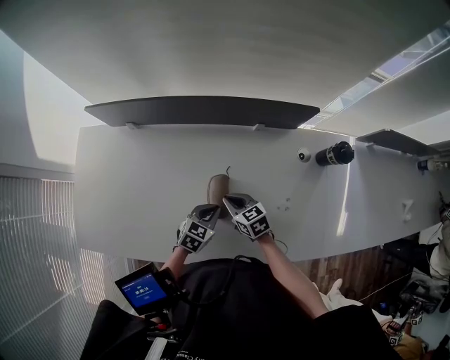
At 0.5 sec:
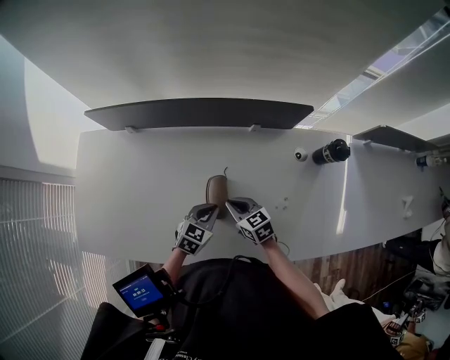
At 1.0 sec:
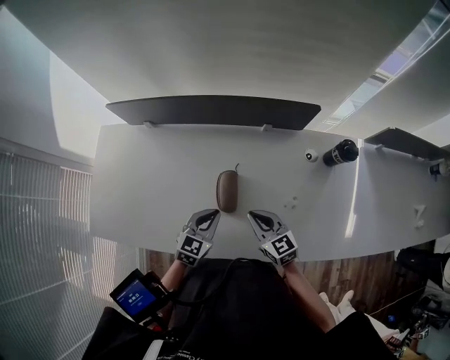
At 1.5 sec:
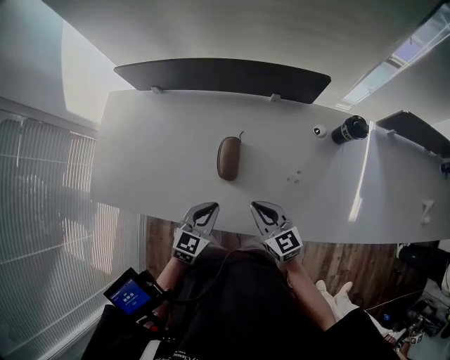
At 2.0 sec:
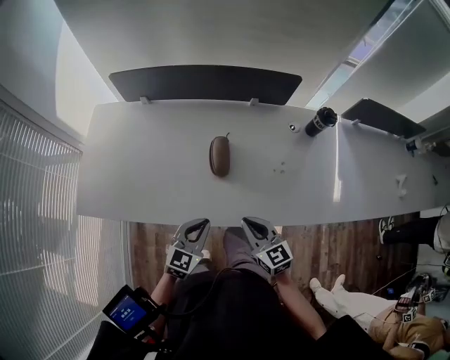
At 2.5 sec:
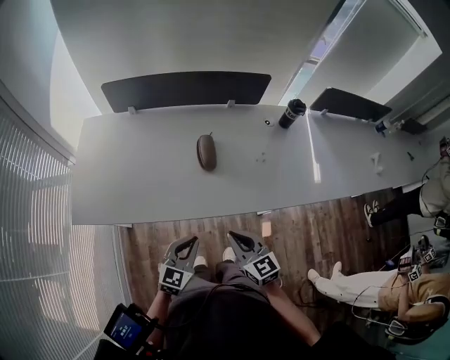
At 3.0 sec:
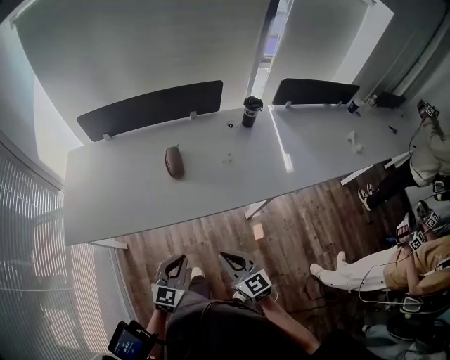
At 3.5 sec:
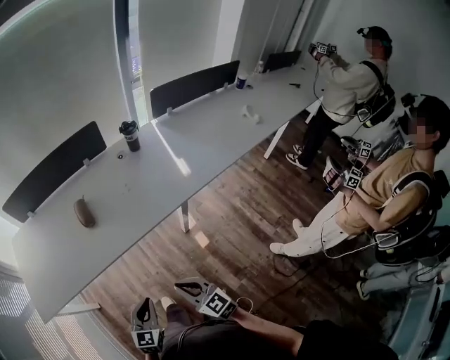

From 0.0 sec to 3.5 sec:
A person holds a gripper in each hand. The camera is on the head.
From 0.0 sec to 2.0 sec: Both grippers travel together backward and upward, some 25 cm. The left gripper changes its angle by some 20 degrees, while the right gripper turns by approximately 20 degrees.
From 2.0 sec to 3.5 sec: The left gripper moves backward and to the right, approximately 30 cm. Meanwhile the right gripper moves backward, approximately 30 cm.

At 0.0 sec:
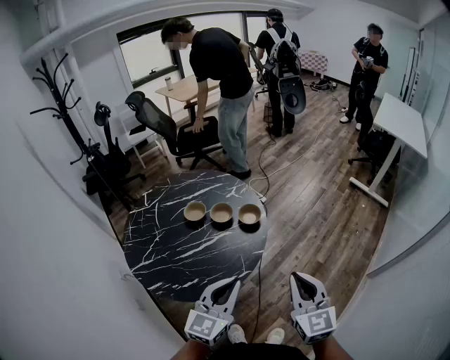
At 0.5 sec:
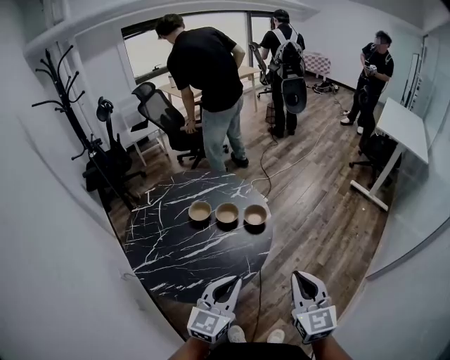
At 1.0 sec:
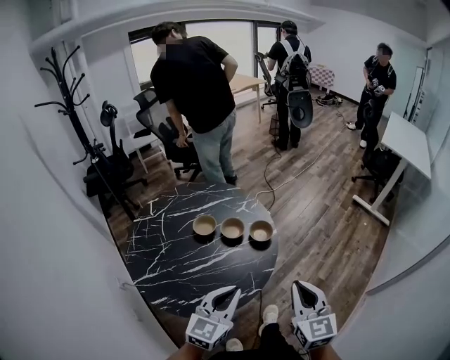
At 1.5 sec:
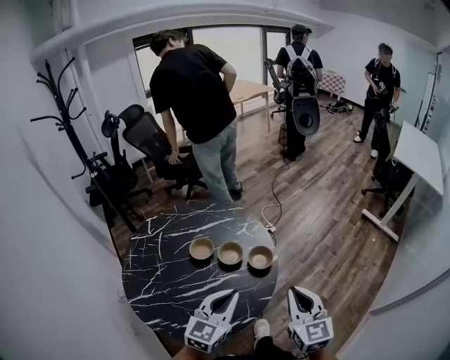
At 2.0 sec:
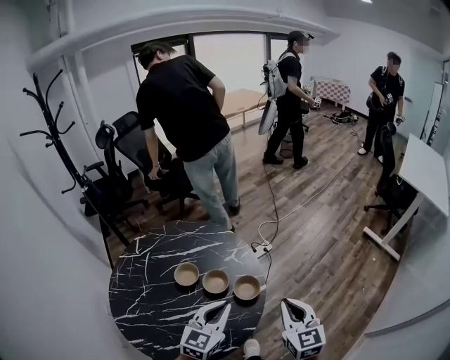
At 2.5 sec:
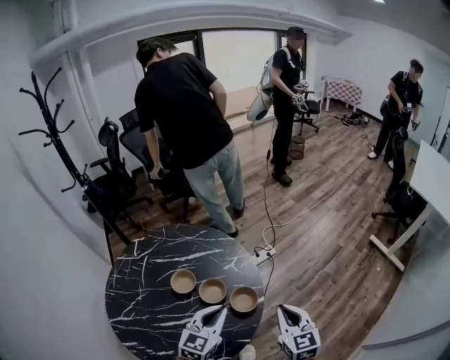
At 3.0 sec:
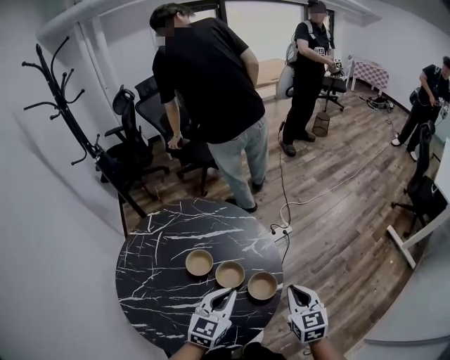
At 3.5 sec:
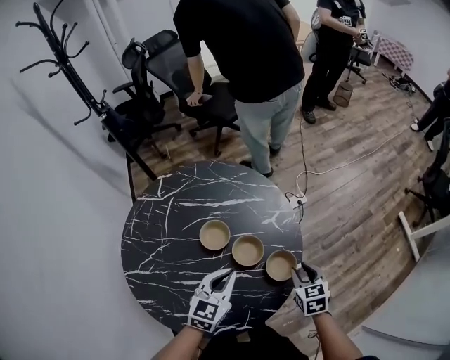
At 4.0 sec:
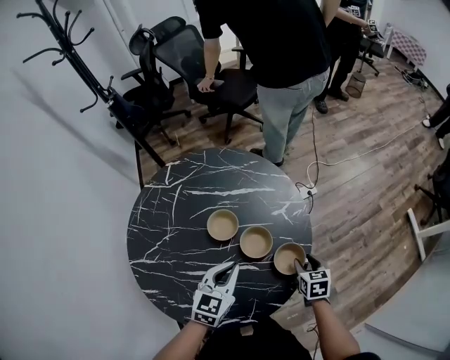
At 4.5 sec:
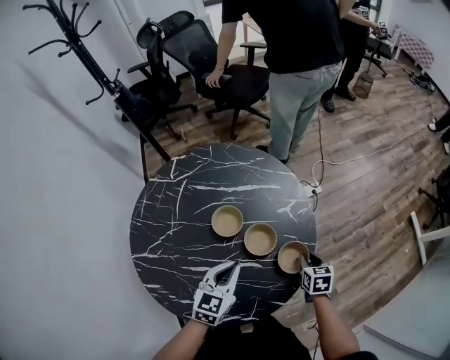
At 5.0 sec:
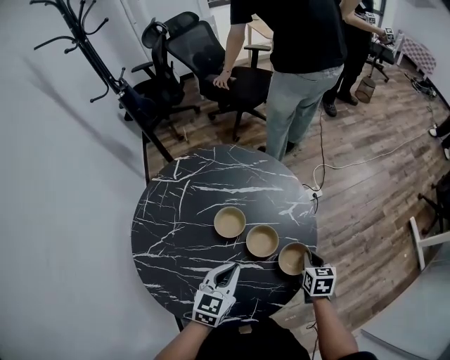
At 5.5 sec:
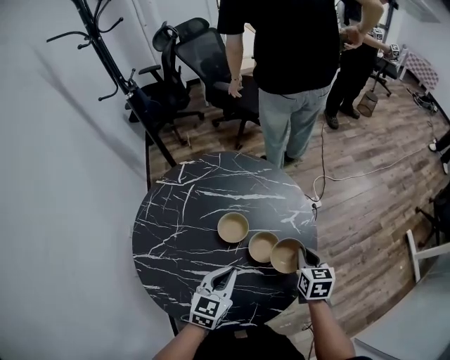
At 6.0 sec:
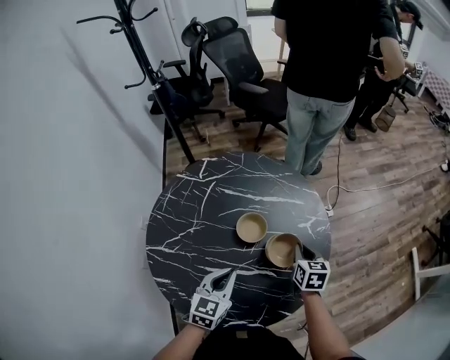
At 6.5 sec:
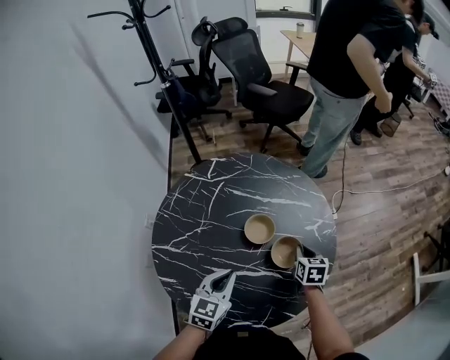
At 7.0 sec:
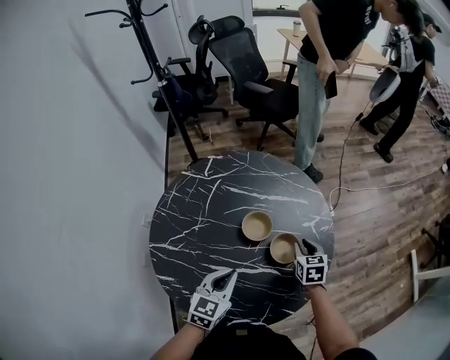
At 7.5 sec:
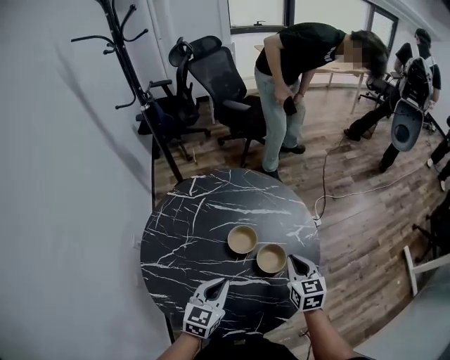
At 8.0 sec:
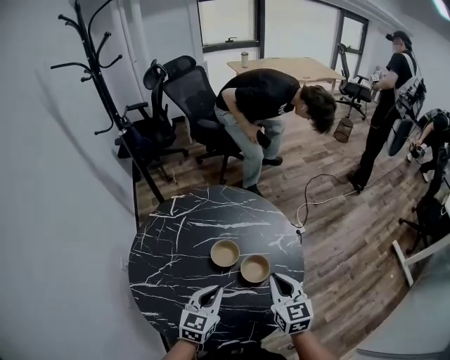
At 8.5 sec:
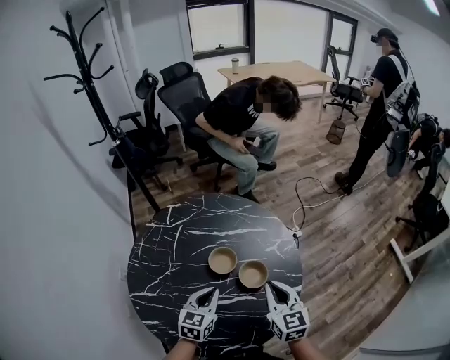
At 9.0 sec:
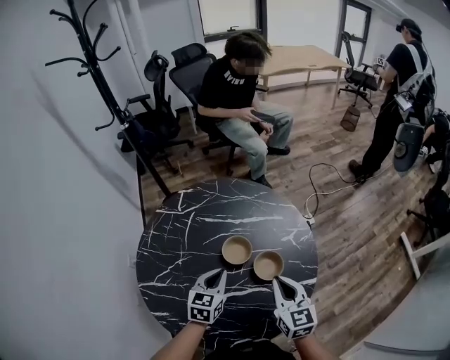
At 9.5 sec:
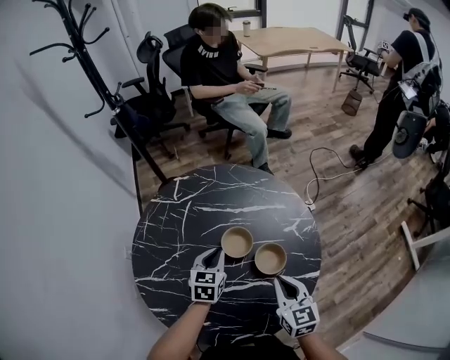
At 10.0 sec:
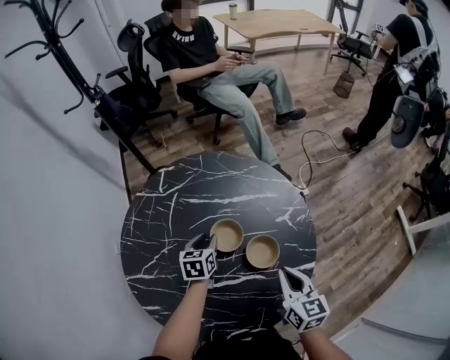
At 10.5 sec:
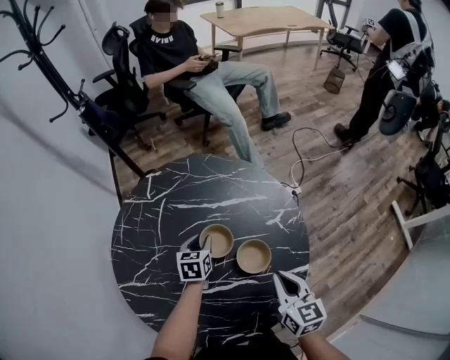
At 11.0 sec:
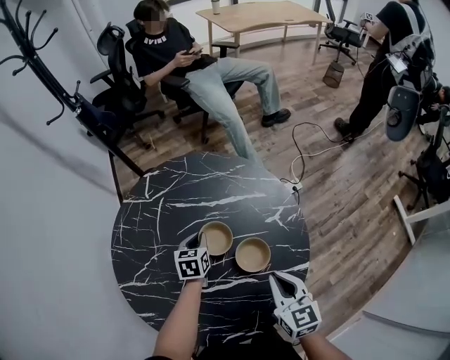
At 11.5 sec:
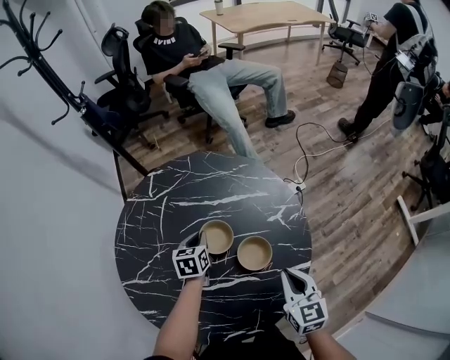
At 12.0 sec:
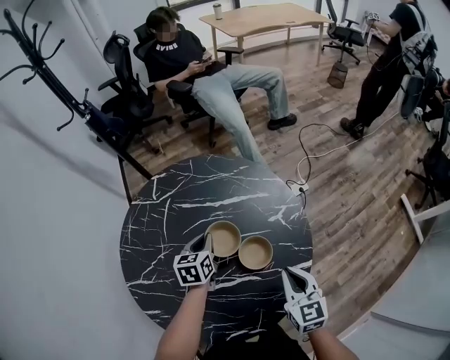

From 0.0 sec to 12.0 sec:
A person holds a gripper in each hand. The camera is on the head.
From 0.0 sec to 2.0 sec: The two grippers go approximately 25 cm forward.
From 2.0 sec to 4.0 sec: The right gripper heads downward and forward, covering approximately 30 cm, tilts its fingers roughly 40 degrees downward, and opens its fingers, while the left gripper moves downward, to the left and forward, roughly 15 cm, and changes its angle by approximately 20 degrees.
From 4.0 sec to 6.0 sec: The right gripper is displaced to the left, forward and upward by some 15 cm, and closes, while the left gripper shifts about 10 cm to the left.
From 6.0 sec to 8.0 sec: The right gripper is displaced upward and backward by roughly 15 cm, rotates roughly 20 degrees, and opens, then closes once more.
From 8.0 sec to 10.0 sec: The left gripper goes about 20 cm forward, downward and to the left, swivels some 30 degrees, and opens up. Meanwhile the right gripper shifts approximately 5 cm downward.
From 10.0 sec to 12.0 sec: The left gripper changes place by about 5 cm, and closes its fingers.

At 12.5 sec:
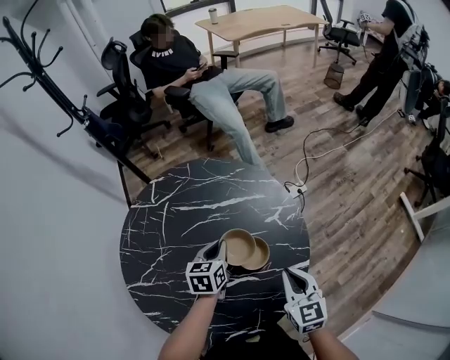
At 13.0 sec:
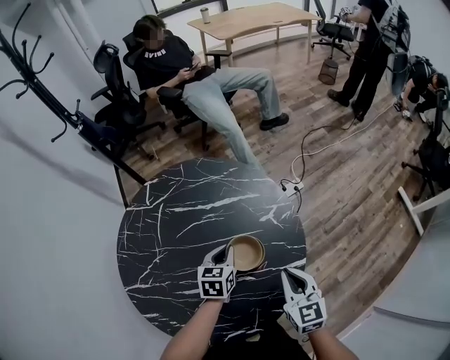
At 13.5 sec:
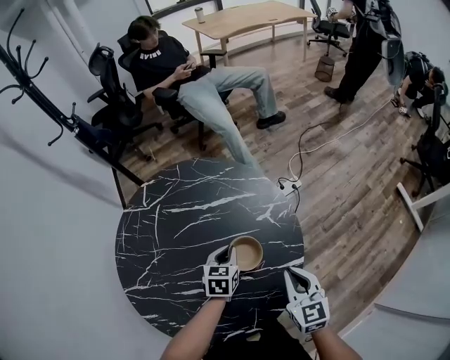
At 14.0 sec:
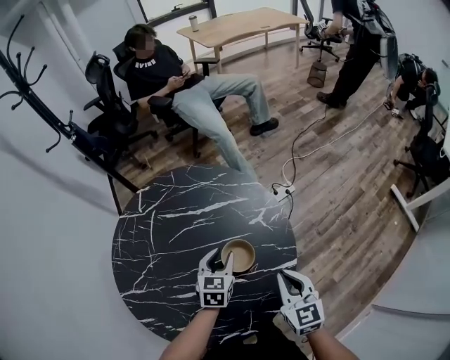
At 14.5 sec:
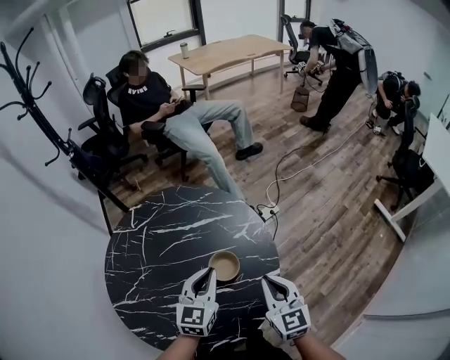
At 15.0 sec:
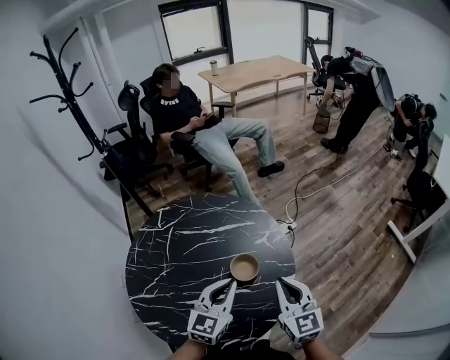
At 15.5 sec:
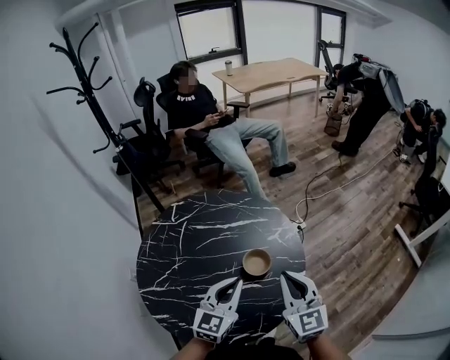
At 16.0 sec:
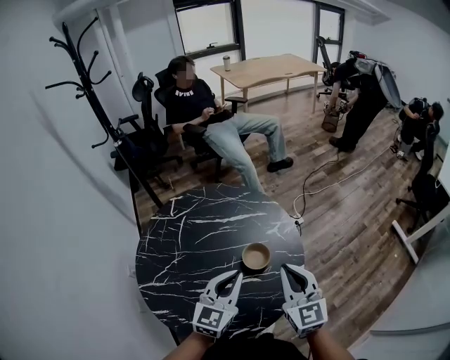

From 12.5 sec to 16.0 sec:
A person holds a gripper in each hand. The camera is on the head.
From 12.5 sec to 14.5 sec: The left gripper shifts roughly 15 cm upward, to the right and backward, swivels roughly 30 degrees, and opens, then closes again; the right gripper moves upward, roughly 5 cm.
From 14.5 sec to 16.0 sec: The left gripper travels backward and upward by some 10 cm. The right gripper shifts approximately 10 cm upward and to the left.

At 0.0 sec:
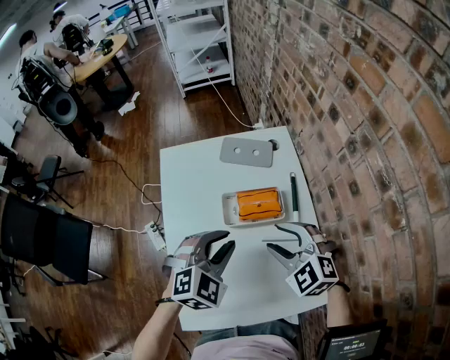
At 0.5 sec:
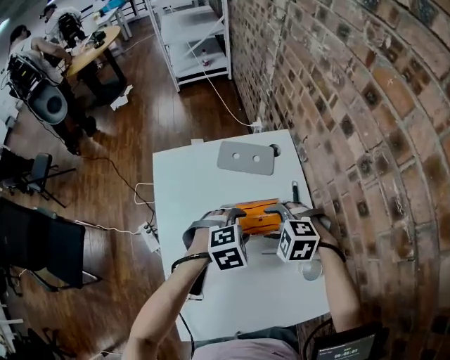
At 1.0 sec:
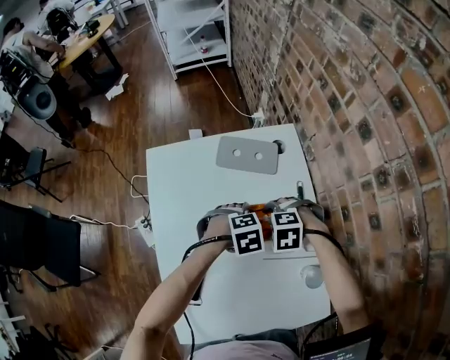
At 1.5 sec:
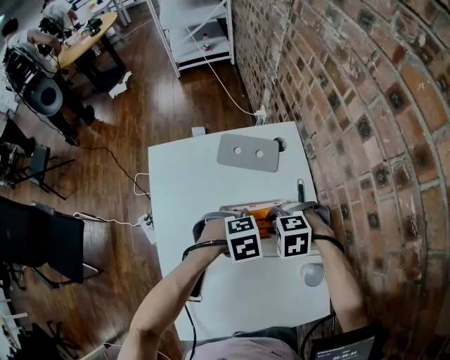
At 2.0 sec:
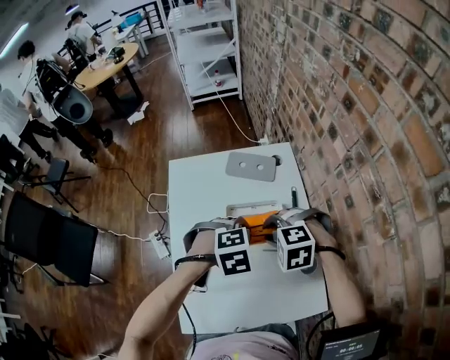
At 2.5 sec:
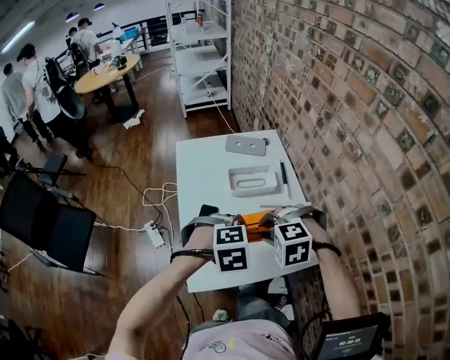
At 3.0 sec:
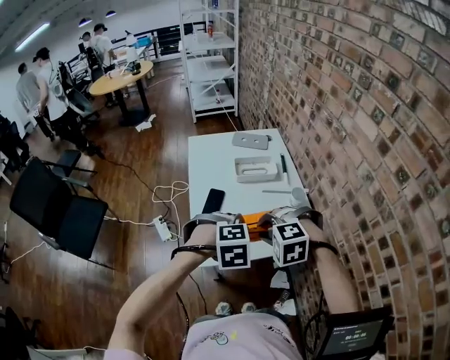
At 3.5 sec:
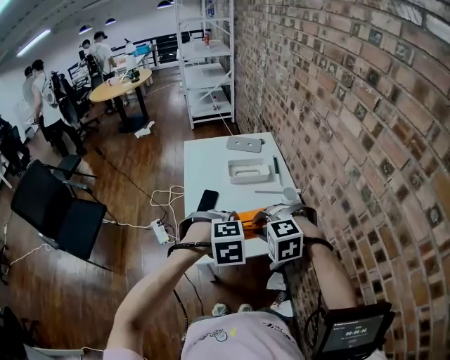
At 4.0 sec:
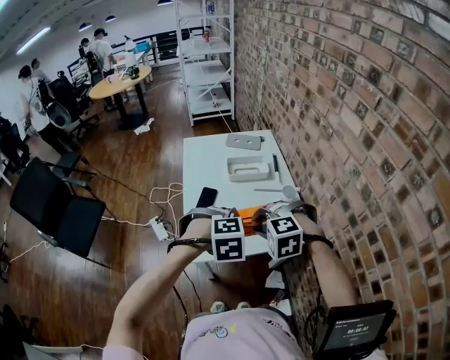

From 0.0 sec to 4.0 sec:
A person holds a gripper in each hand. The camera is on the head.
From 0.0 sec to 2.0 sec: The left gripper travels downward and back again, about 20 cm each way, turns by some 30 degrees, and opens and closes again.
From 2.0 sec to 4.0 sec: The left gripper moves about 35 cm.

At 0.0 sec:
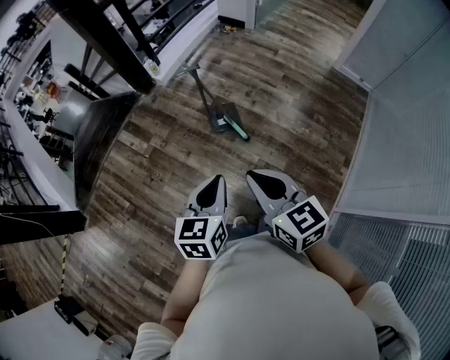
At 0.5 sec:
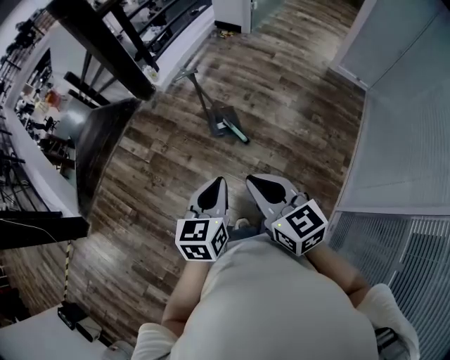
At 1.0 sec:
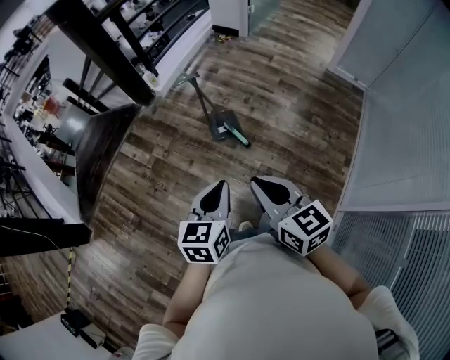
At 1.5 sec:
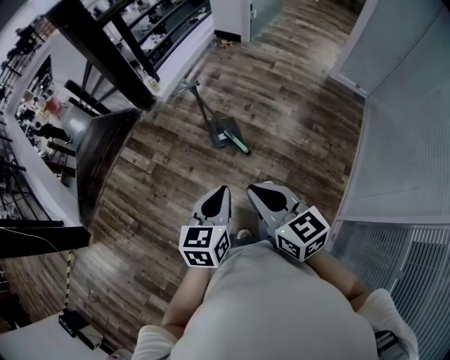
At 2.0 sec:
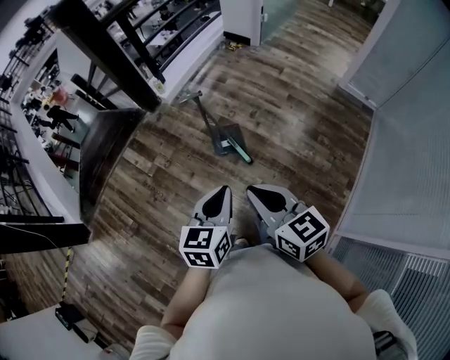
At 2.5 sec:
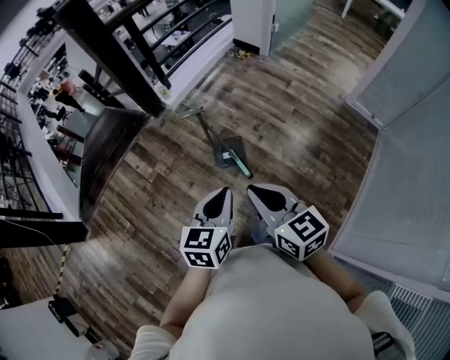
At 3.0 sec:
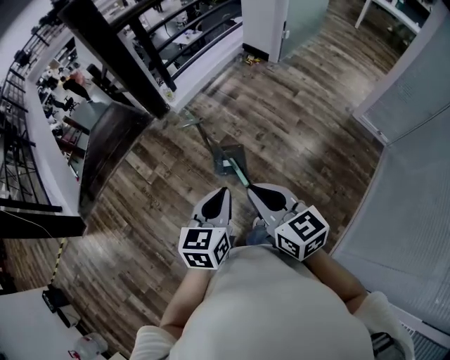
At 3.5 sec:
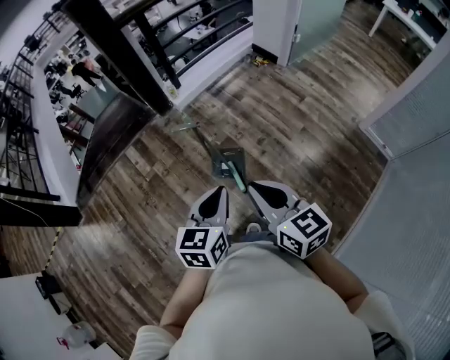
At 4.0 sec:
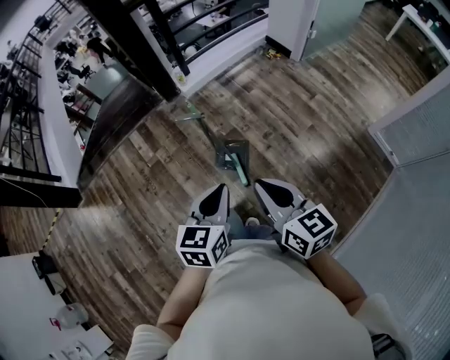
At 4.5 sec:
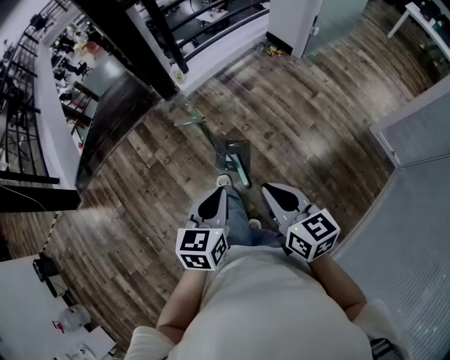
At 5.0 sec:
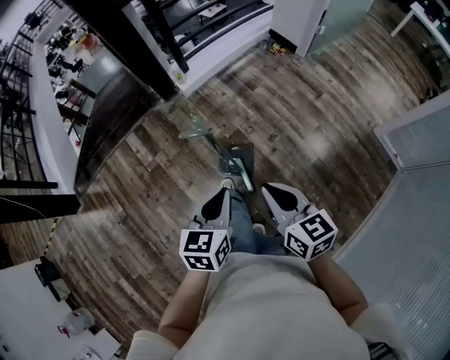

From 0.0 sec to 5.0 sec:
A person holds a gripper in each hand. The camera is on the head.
From 0.0 sec to 2.5 sec: Both grippers move forward and to the right, approximately 15 cm.
From 2.5 sec to 5.0 sec: The right gripper moves forward and to the right, about 25 cm, while the left gripper heads forward, covering some 20 cm.
